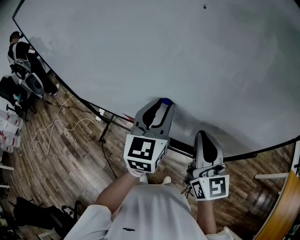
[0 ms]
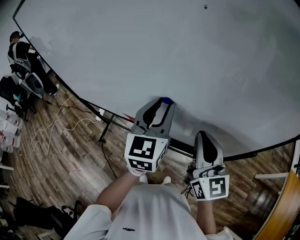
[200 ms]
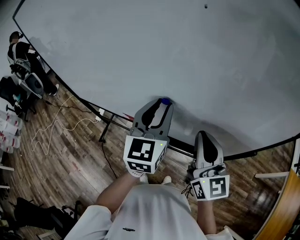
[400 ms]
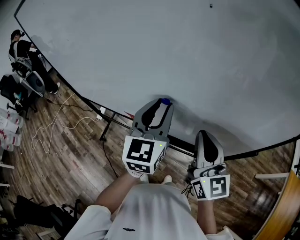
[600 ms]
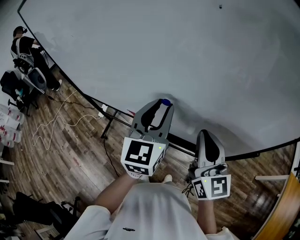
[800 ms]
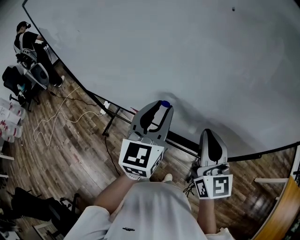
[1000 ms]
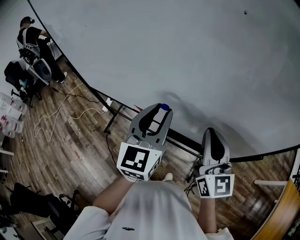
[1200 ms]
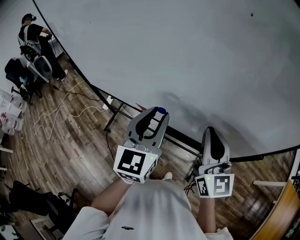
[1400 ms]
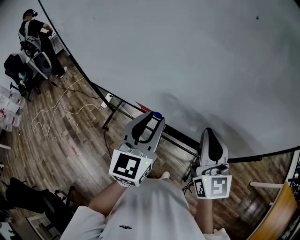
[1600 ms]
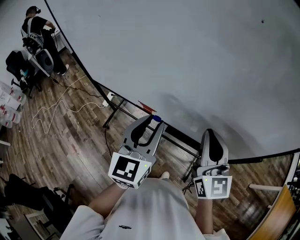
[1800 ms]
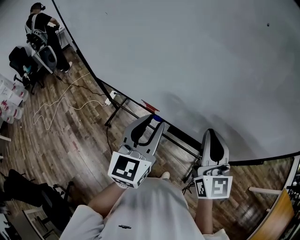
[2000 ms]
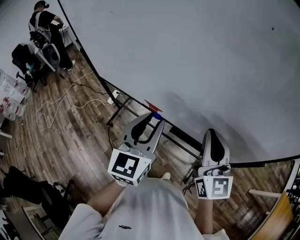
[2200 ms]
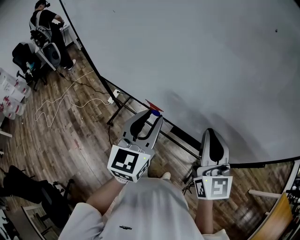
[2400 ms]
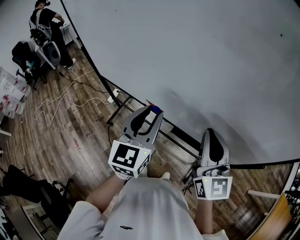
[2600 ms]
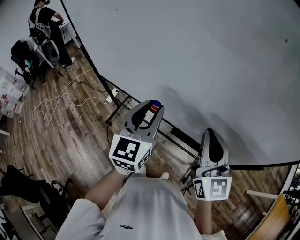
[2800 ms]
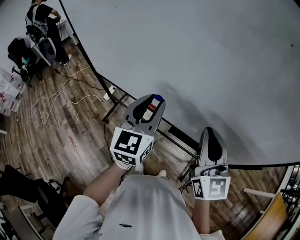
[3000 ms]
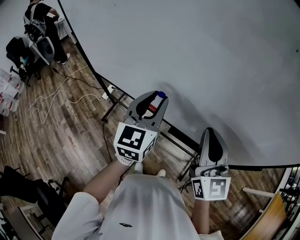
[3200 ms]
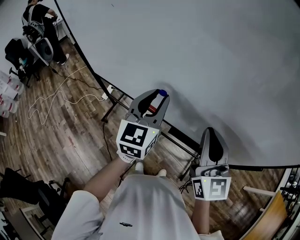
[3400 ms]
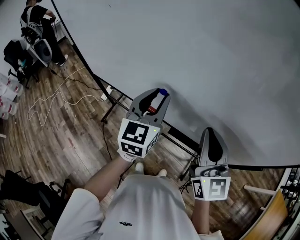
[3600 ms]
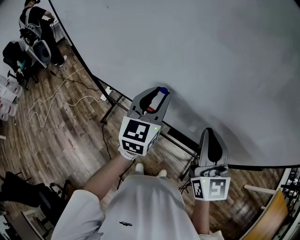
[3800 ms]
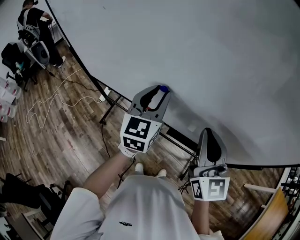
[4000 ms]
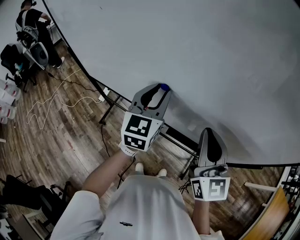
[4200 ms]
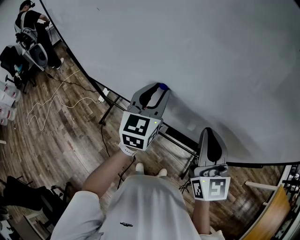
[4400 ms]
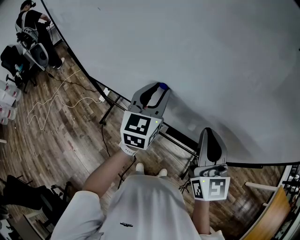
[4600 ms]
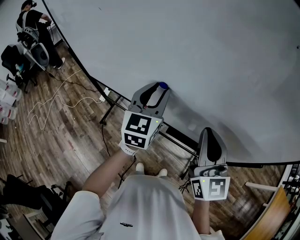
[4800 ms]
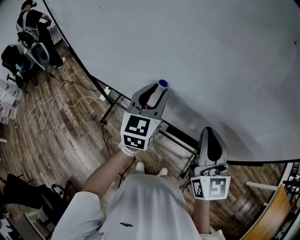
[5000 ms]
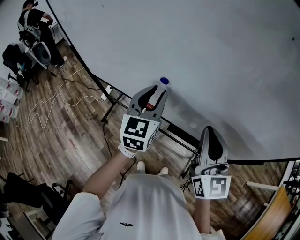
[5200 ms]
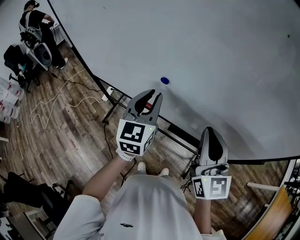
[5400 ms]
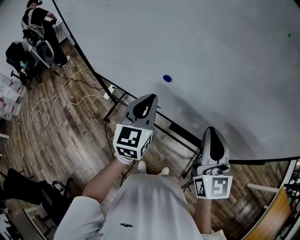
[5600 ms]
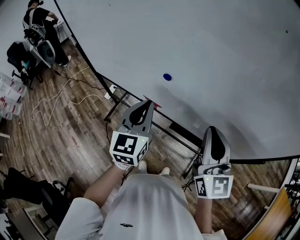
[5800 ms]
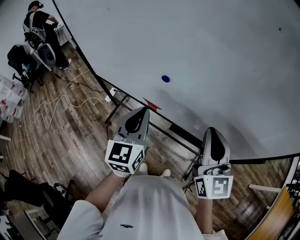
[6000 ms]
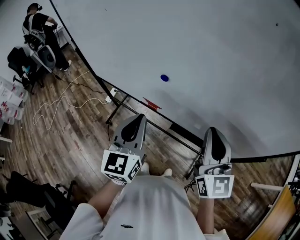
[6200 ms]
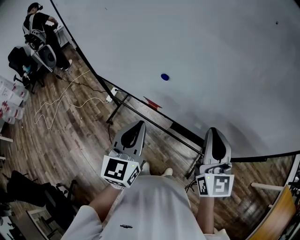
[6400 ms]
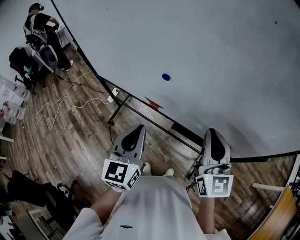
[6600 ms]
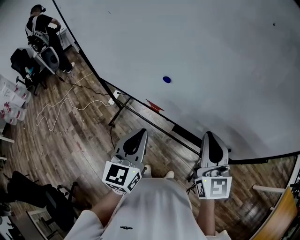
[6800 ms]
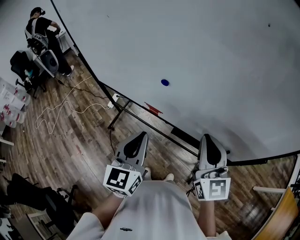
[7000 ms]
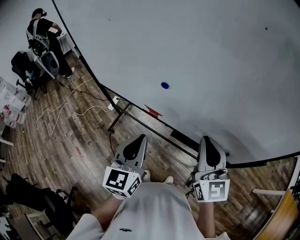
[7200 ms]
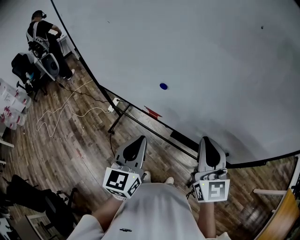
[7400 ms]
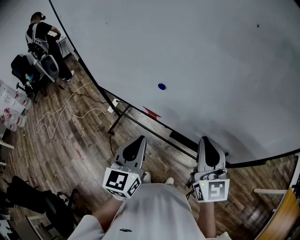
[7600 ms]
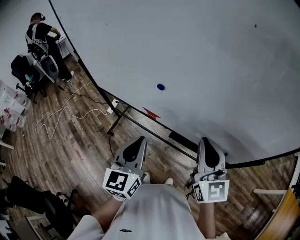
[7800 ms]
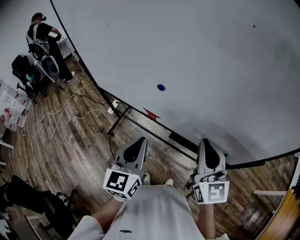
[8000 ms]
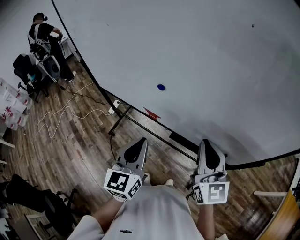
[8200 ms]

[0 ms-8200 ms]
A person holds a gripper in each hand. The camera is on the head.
0 ms to 1600 ms: The left gripper is displaced to the left and backward by roughly 10 cm.
1600 ms to 3200 ms: The left gripper heads forward, covering some 5 cm.
3200 ms to 5000 ms: The left gripper goes approximately 5 cm forward.
5000 ms to 6600 ms: The left gripper goes roughly 15 cm backward, and closes.
6600 ms to 8200 ms: The grippers move only a little.

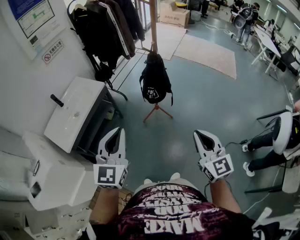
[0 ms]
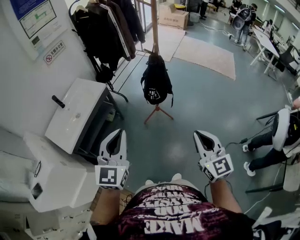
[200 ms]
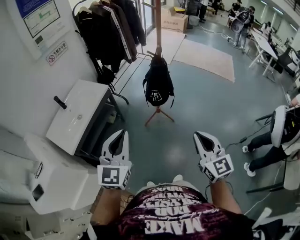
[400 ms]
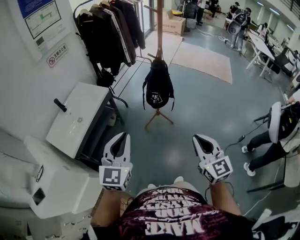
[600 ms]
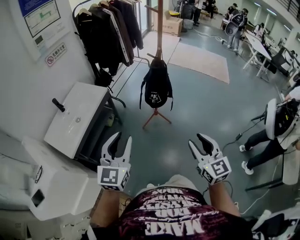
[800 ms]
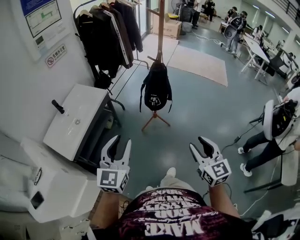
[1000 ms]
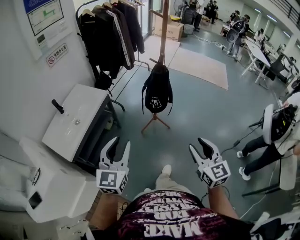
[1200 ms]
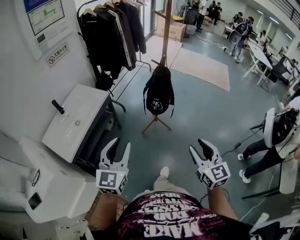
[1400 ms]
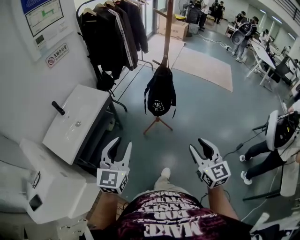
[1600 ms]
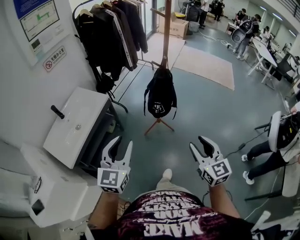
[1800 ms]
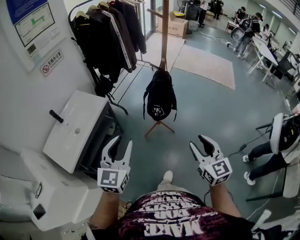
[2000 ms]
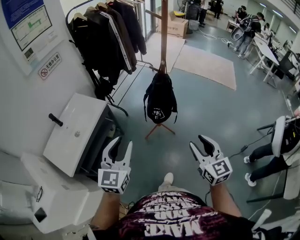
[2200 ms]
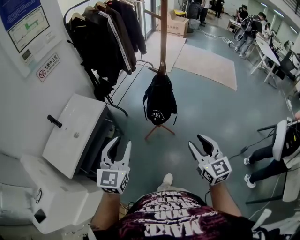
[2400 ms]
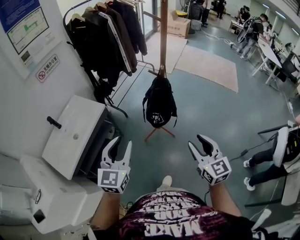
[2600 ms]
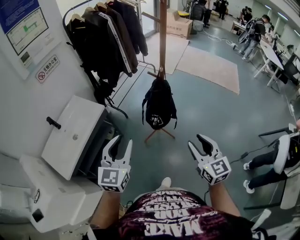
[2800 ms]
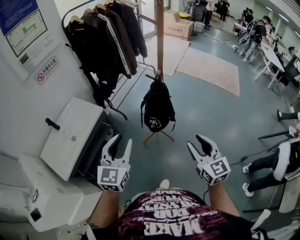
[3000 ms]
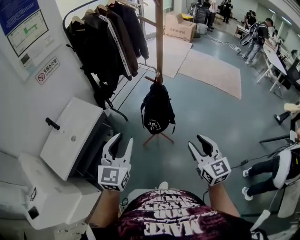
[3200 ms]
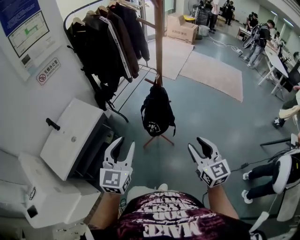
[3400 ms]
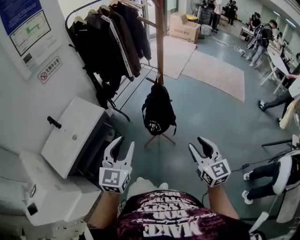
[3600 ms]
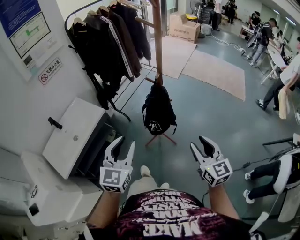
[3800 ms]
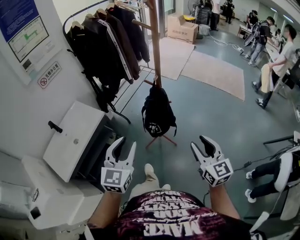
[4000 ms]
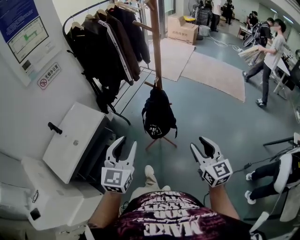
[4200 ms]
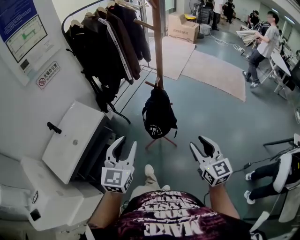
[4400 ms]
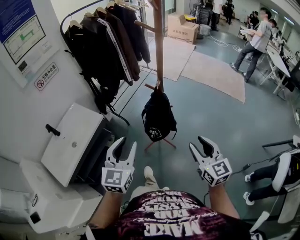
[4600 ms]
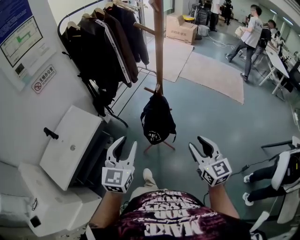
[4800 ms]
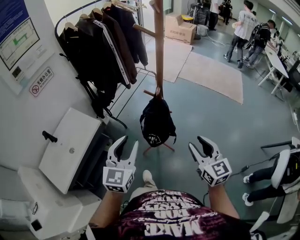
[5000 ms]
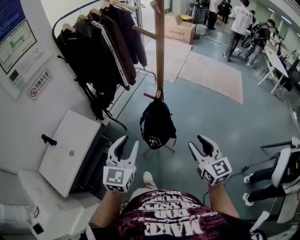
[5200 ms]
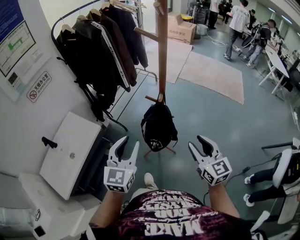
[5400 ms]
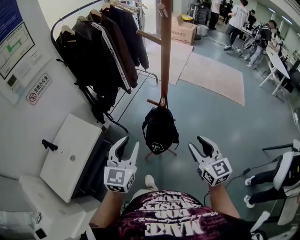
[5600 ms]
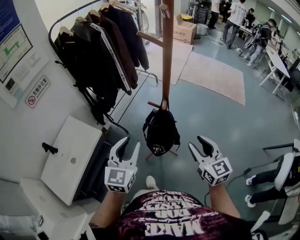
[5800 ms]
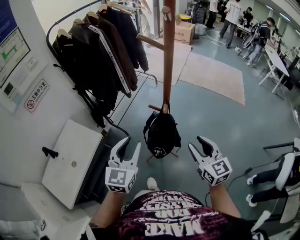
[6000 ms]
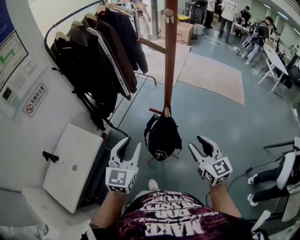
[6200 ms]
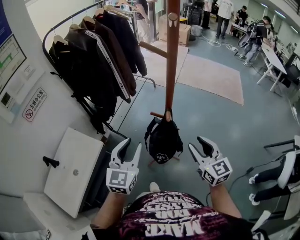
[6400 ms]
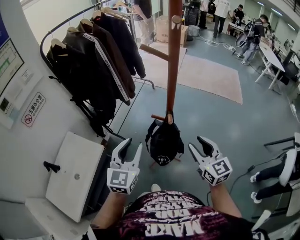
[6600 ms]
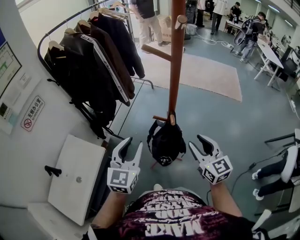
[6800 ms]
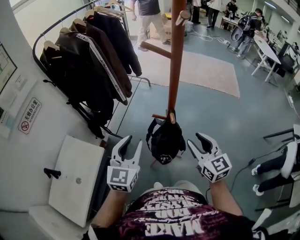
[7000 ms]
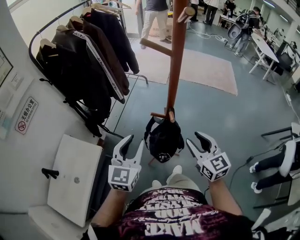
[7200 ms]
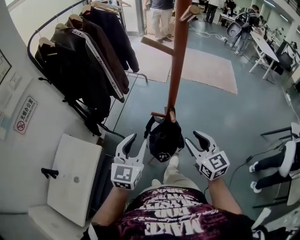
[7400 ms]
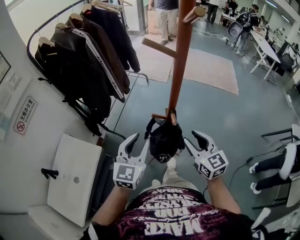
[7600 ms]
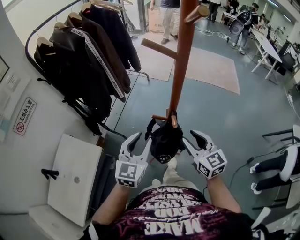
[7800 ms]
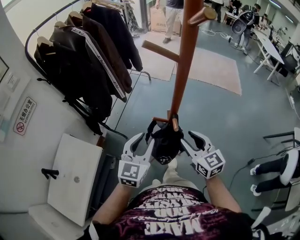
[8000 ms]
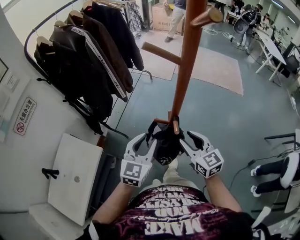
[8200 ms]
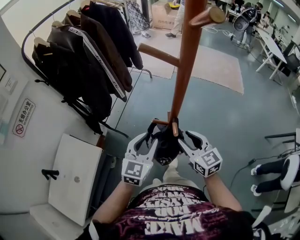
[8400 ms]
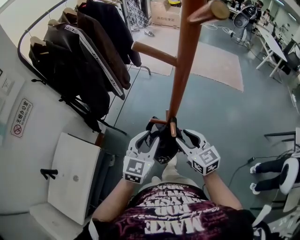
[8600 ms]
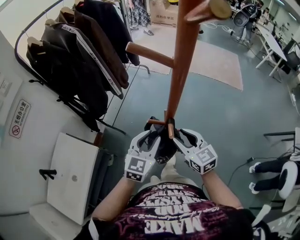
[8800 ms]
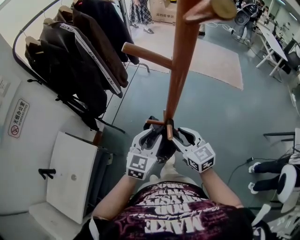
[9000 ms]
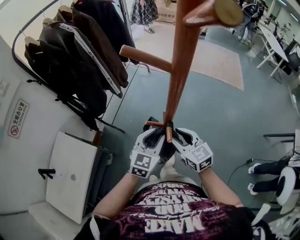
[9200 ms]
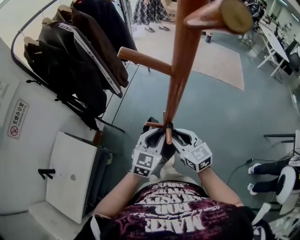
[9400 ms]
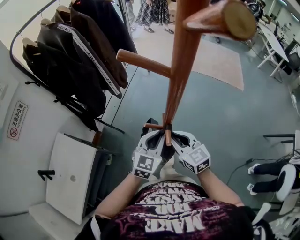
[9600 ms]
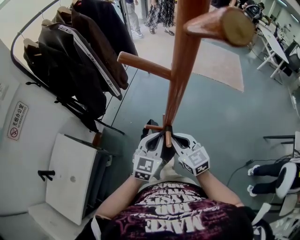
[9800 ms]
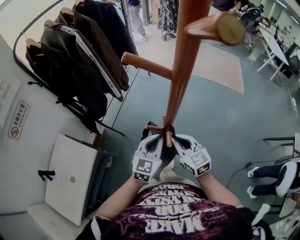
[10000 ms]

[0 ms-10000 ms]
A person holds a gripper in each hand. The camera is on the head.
0 ms to 1400 ms: Both grippers move to the left, some 10 cm. The right gripper opens. Meanwhile the left gripper opens up.
1400 ms to 2800 ms: Both grippers move forward, approximately 20 cm.
2800 ms to 4200 ms: The grippers both shift to the right by approximately 5 cm.
4200 ms to 5800 ms: Both grippers move forward, some 15 cm.
5800 ms to 7200 ms: Both grippers move forward, some 10 cm.
7200 ms to 8600 ms: The right gripper travels forward and downward by approximately 10 cm, while the left gripper heads forward, to the right and downward, covering roughly 10 cm.
8600 ms to 10000 ms: The left gripper shifts by roughly 5 cm, and closes its fingers, while the right gripper closes its fingers.

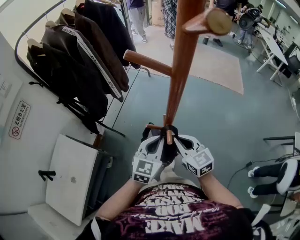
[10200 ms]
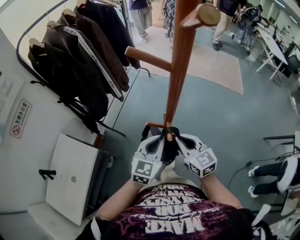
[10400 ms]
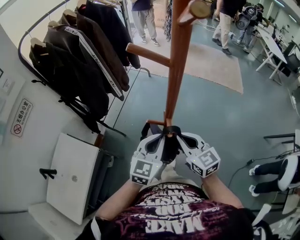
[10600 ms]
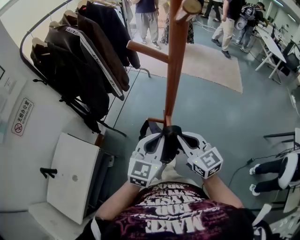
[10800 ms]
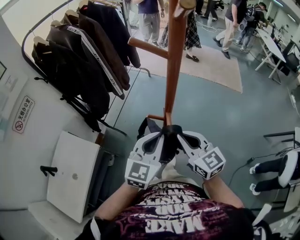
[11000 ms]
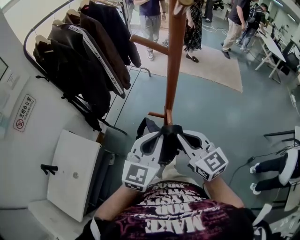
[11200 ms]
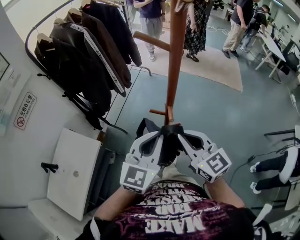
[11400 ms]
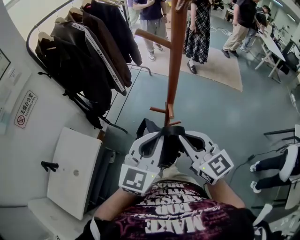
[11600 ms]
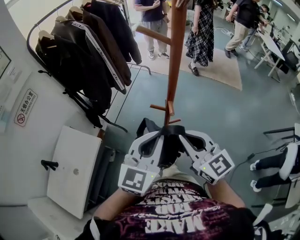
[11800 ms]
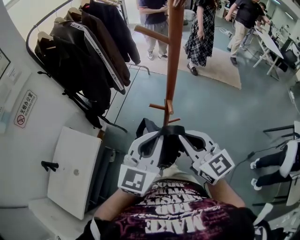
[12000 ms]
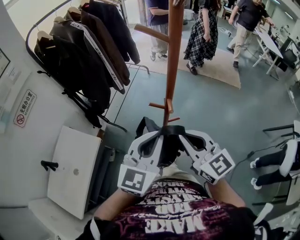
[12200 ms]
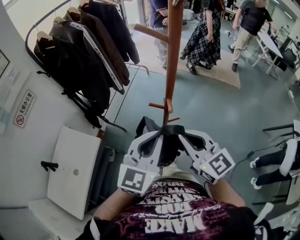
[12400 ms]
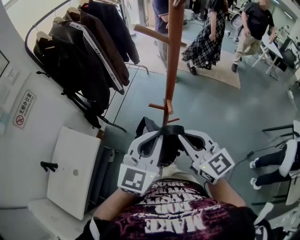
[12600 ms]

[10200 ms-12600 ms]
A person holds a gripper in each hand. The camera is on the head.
10200 ms to 11400 ms: The grippers both shift upward and backward by approximately 15 cm.
11400 ms to 12600 ms: There are only small adjustments of the grippers.

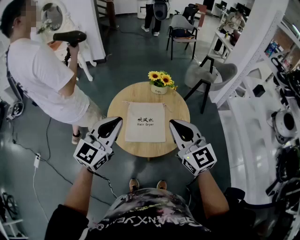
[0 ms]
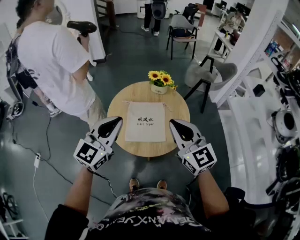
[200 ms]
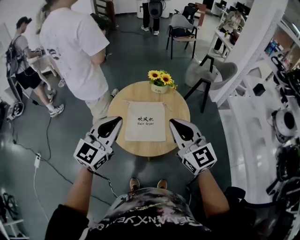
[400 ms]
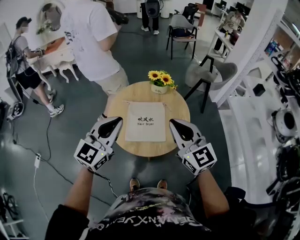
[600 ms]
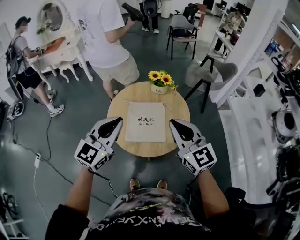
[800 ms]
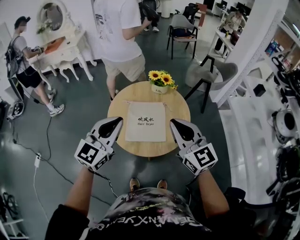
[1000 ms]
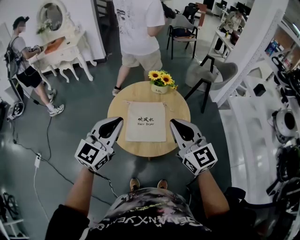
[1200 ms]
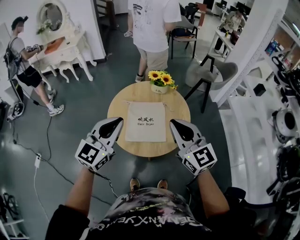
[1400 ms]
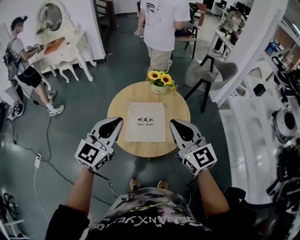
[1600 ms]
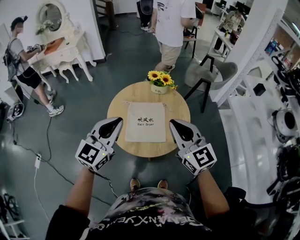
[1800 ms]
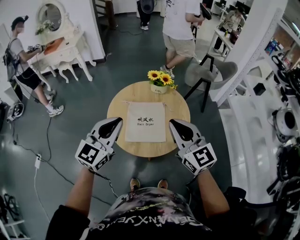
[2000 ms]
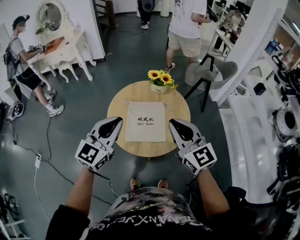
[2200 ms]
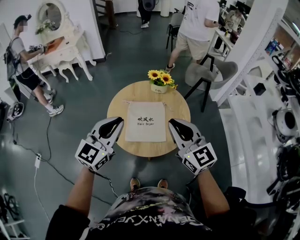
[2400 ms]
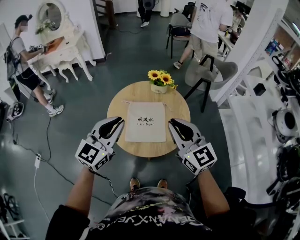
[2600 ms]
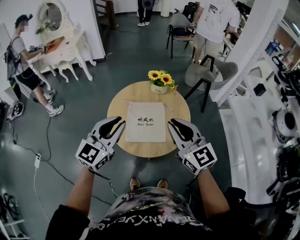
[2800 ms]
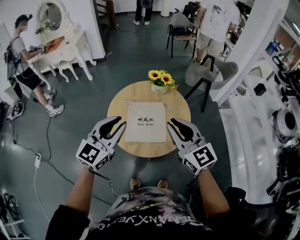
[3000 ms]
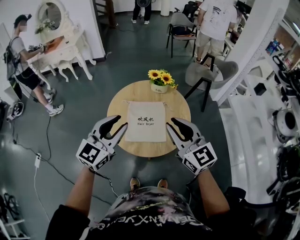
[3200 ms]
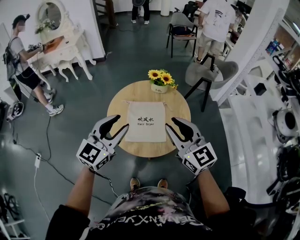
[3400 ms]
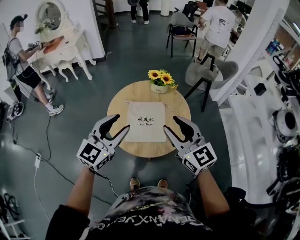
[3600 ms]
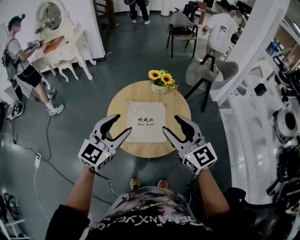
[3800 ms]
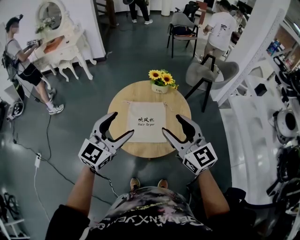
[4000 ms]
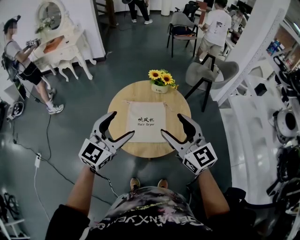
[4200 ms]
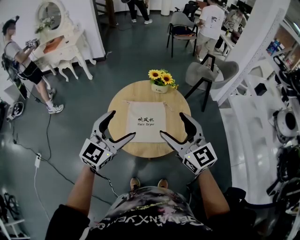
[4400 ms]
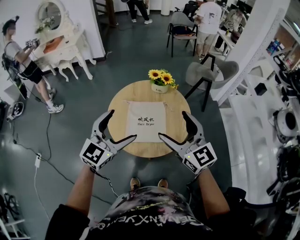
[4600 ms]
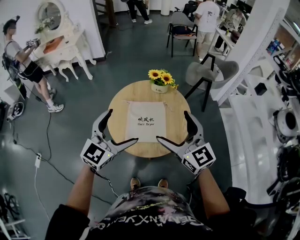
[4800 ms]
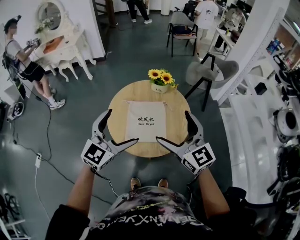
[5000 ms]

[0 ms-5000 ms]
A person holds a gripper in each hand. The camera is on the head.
0 ms to 1600 ms: Both grippers stay about where they are.
1600 ms to 3400 ms: The grippers move only a little.
3400 ms to 5000 ms: The left gripper opens its fingers, while the right gripper opens.
